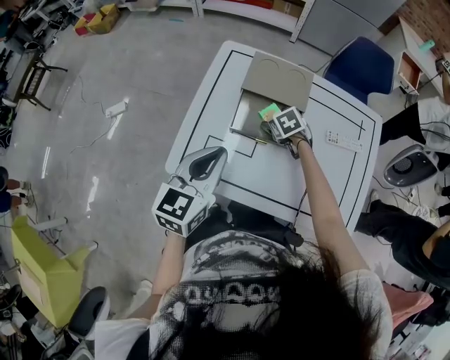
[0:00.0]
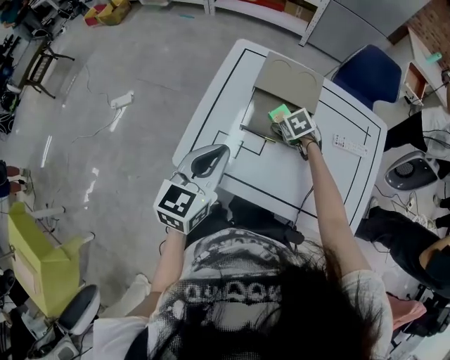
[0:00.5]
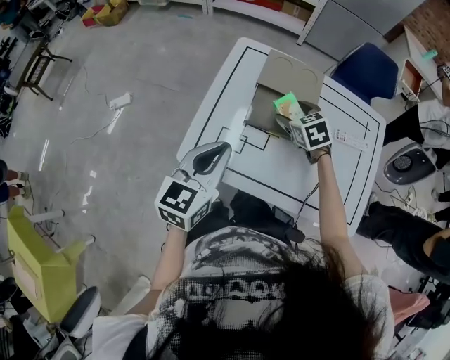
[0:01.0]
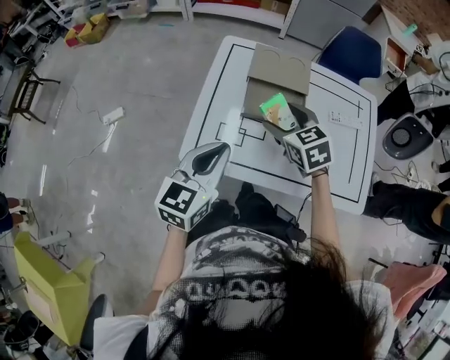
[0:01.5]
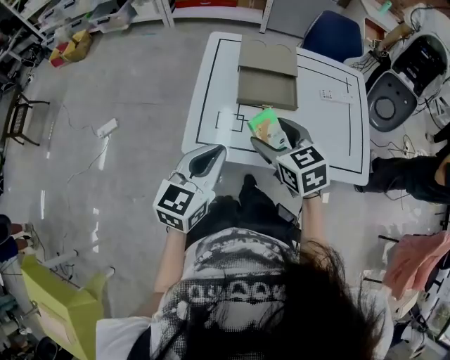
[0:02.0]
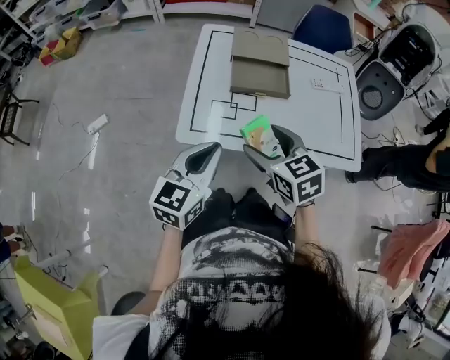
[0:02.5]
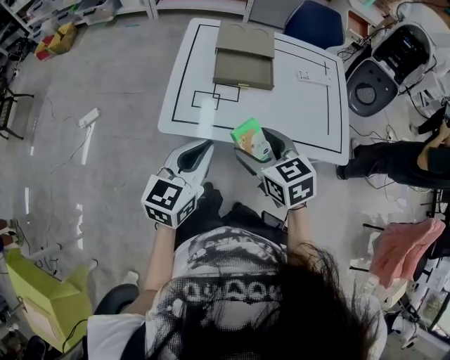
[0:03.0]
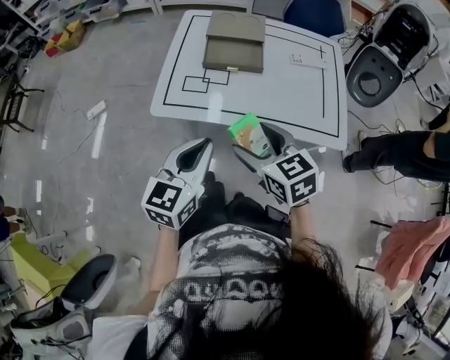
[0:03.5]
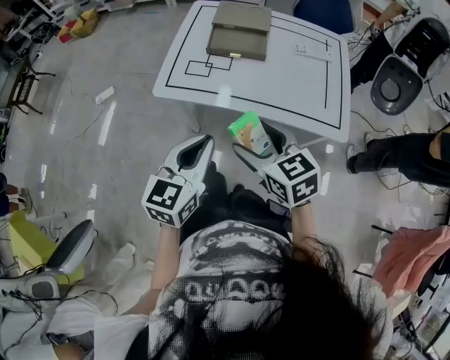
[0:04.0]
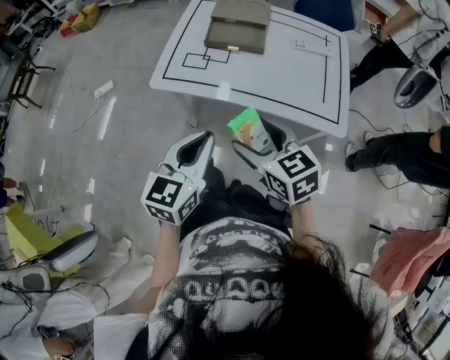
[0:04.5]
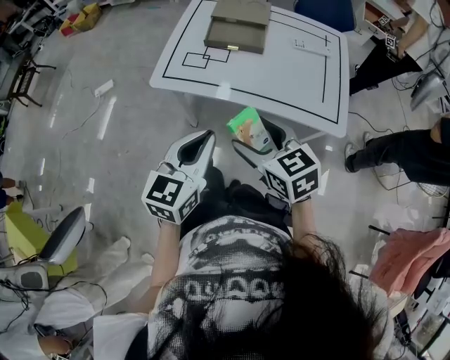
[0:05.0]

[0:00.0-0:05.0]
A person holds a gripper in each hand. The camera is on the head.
0:00.0 to 0:02.5: The left gripper goes roughly 20 cm backward and to the left; the right gripper heads backward and upward, covering roughly 40 cm, and changes its angle by about 30 degrees.
0:02.5 to 0:05.0: The grippers both shift backward and to the right by about 25 cm.

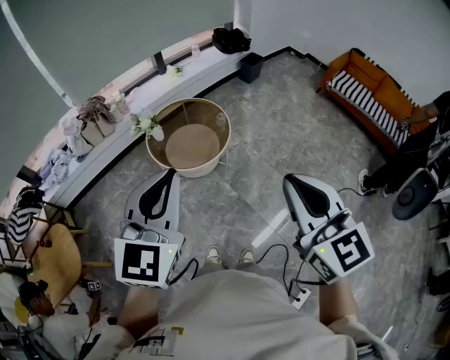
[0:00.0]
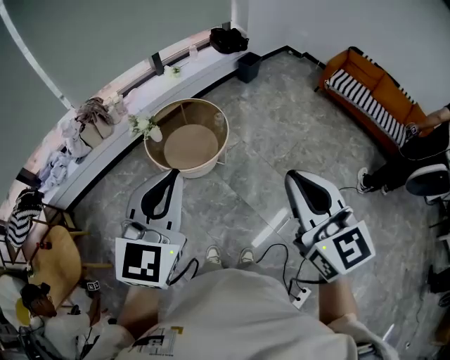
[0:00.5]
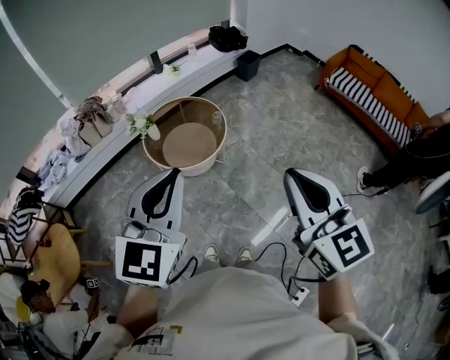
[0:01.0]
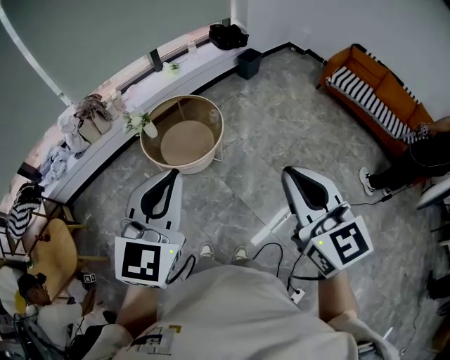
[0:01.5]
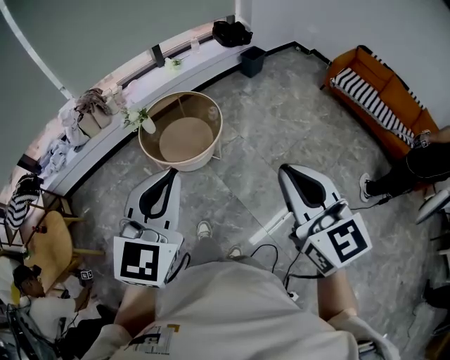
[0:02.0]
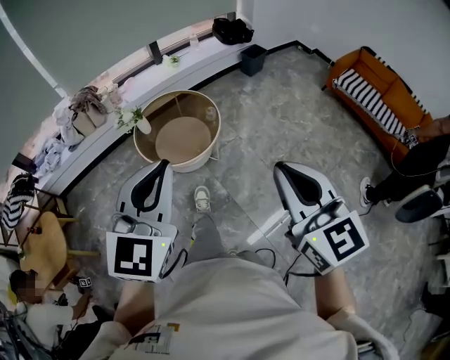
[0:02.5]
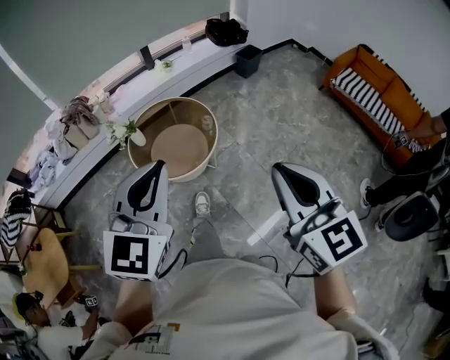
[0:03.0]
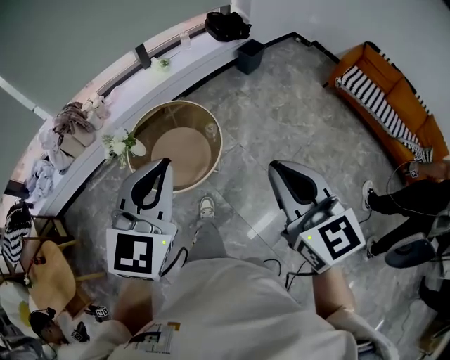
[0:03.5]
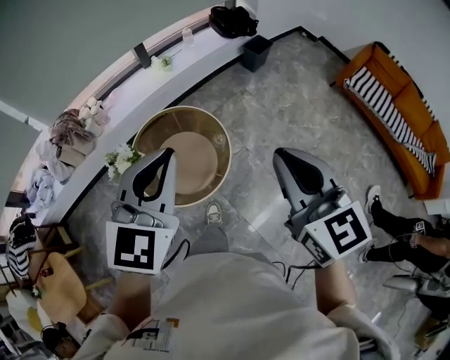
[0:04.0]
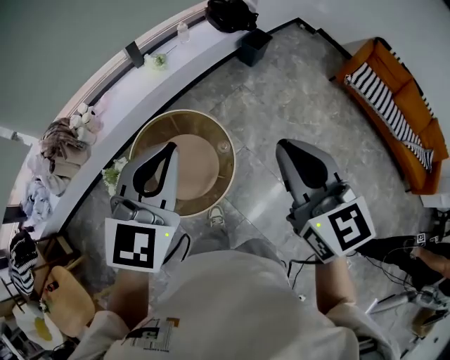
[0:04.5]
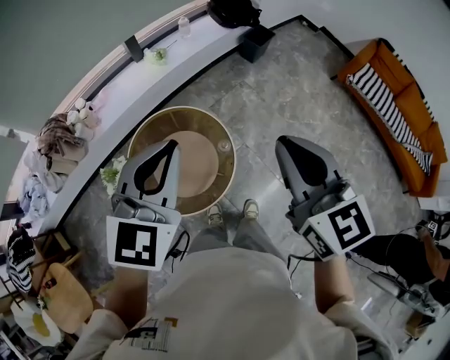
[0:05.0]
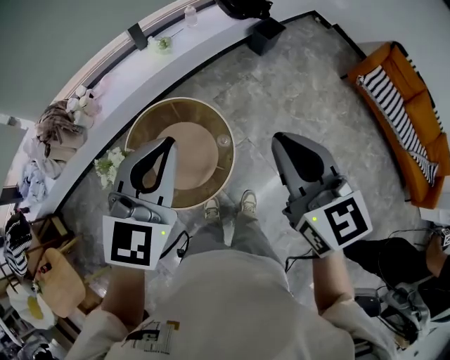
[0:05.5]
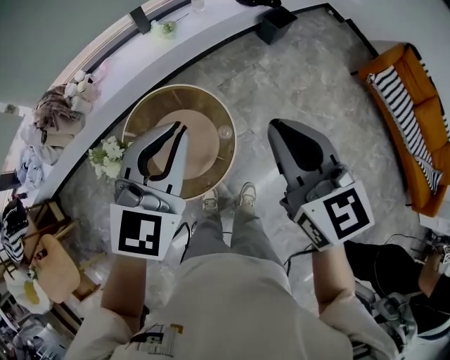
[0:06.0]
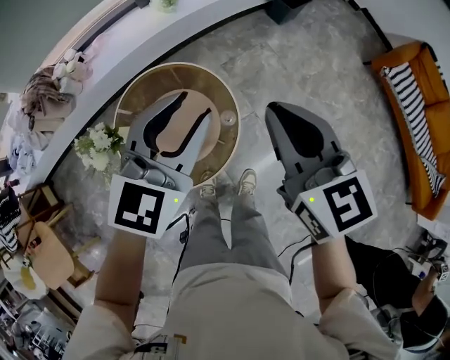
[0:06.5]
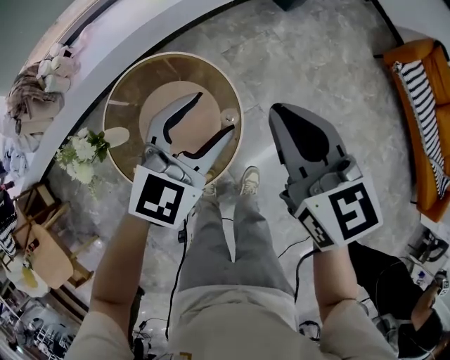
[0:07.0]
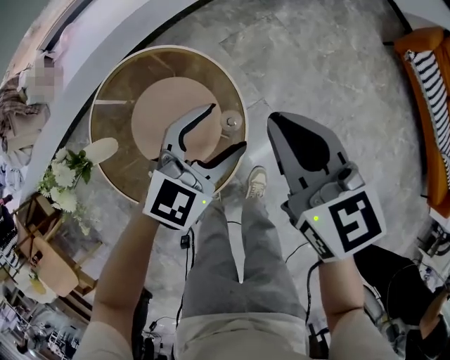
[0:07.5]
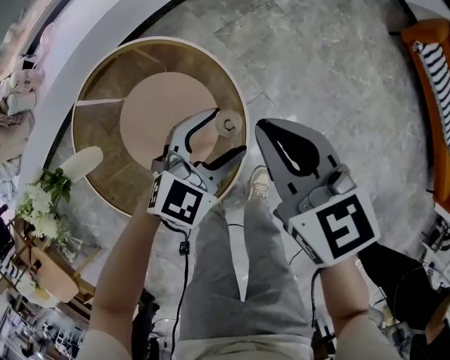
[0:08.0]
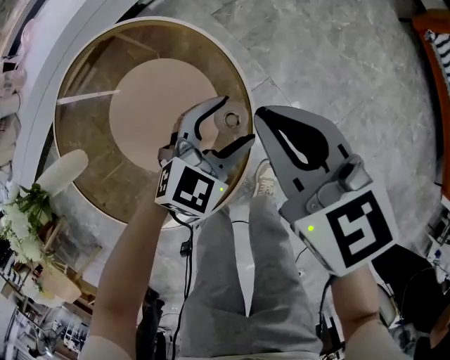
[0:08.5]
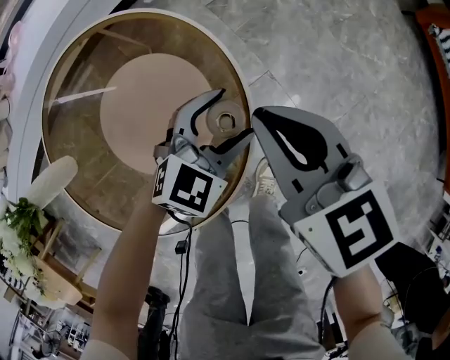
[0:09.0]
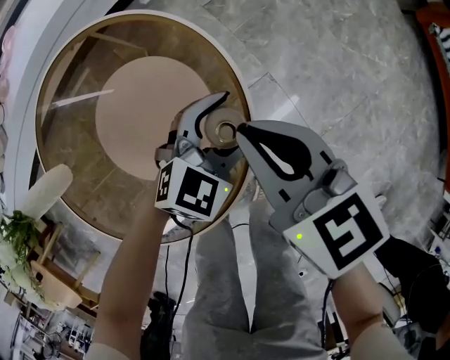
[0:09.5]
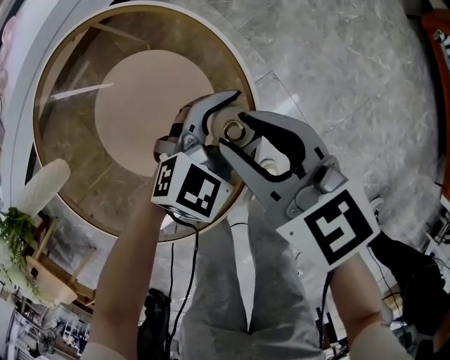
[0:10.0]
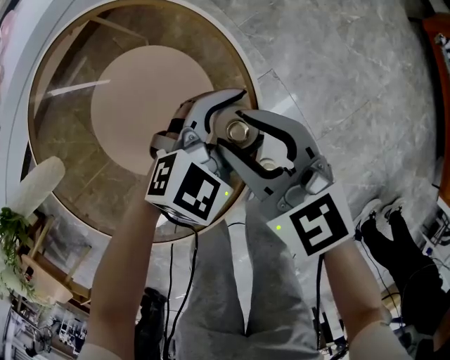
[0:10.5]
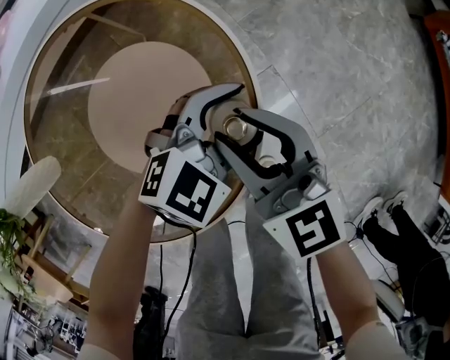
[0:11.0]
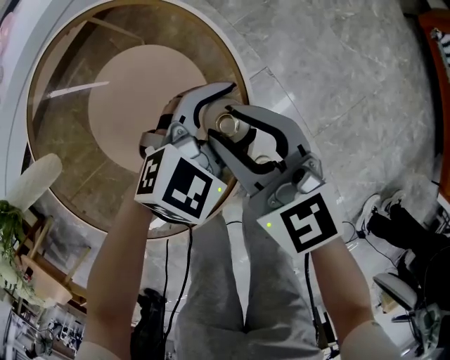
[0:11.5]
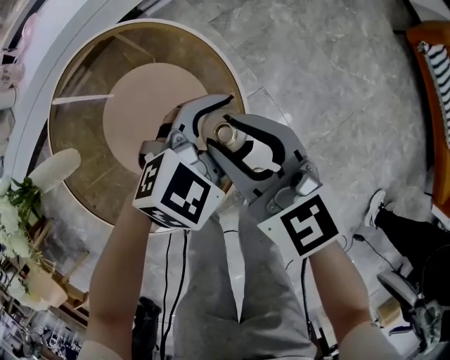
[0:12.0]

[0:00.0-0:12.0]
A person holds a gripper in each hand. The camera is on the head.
0:00.0 to 0:02.0: The grippers both shift to the right by some 10 cm.
0:02.0 to 0:04.0: Both grippers are carried forward, roughly 40 cm.
0:04.0 to 0:06.0: The right gripper moves forward, about 20 cm; the left gripper shifts roughly 20 cm forward and downward.
0:06.0 to 0:08.0: The two grippers go roughly 50 cm downward. The left gripper turns by some 30 degrees, and opens up.
0:08.0 to 0:10.0: The grippers both shift downward by some 15 cm. The right gripper opens its fingers.
0:10.0 to 0:12.0: The grippers both shift upward by roughly 10 cm.

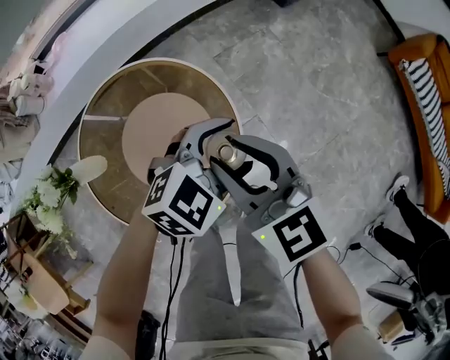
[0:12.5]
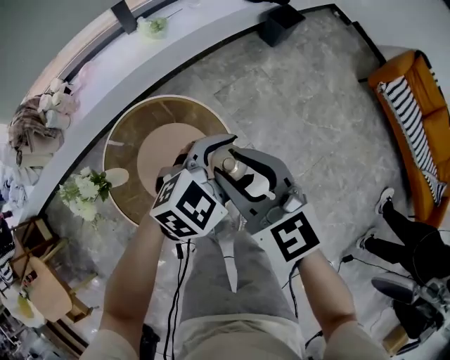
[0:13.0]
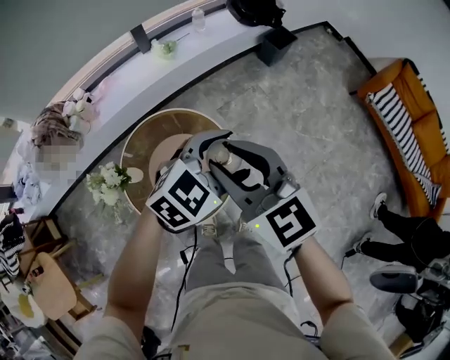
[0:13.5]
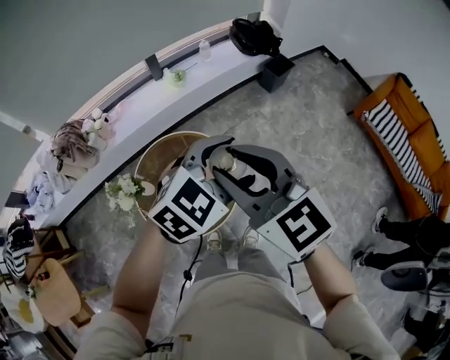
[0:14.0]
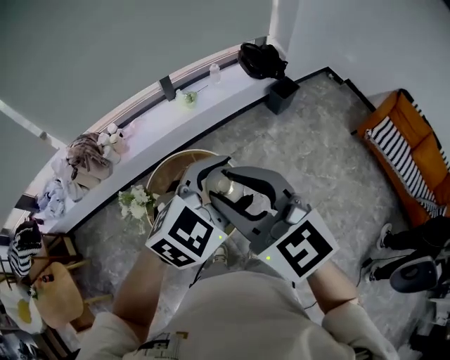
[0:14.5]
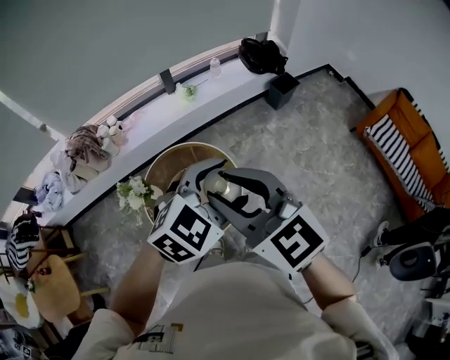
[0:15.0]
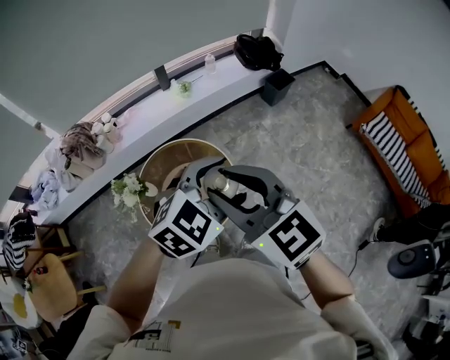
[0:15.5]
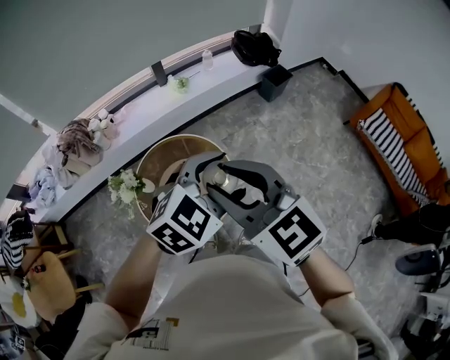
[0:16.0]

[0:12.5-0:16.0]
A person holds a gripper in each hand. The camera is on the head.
0:12.5 to 0:14.5: Both grippers travel together upward, about 50 cm. The right gripper rotates approximately 20 degrees.
0:14.5 to 0:16.0: There are only small adjustments of the grippers.

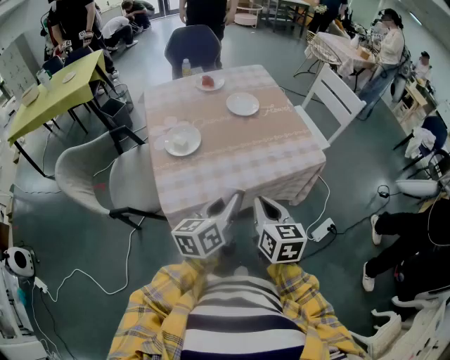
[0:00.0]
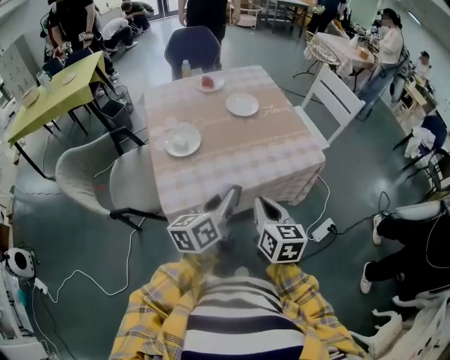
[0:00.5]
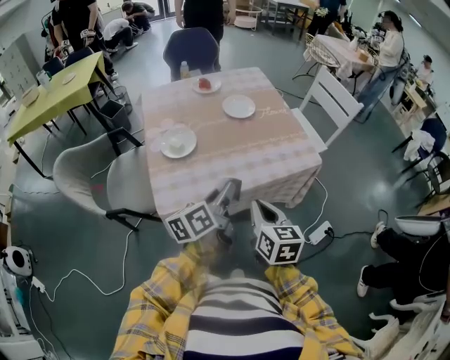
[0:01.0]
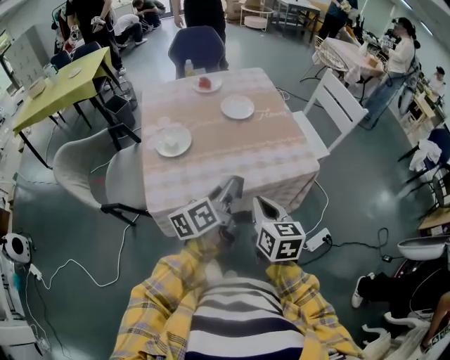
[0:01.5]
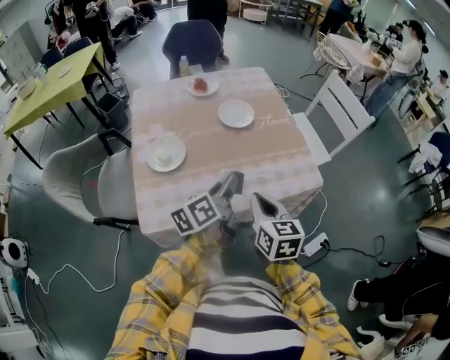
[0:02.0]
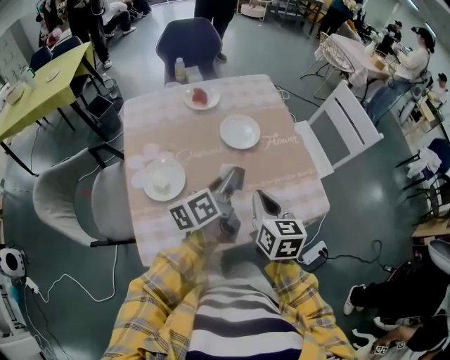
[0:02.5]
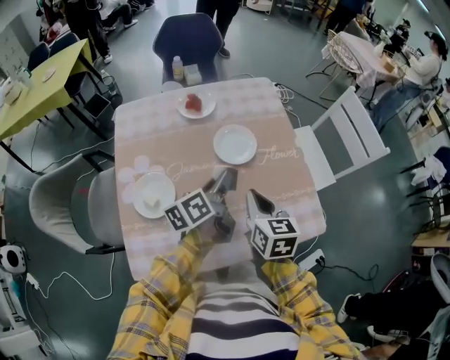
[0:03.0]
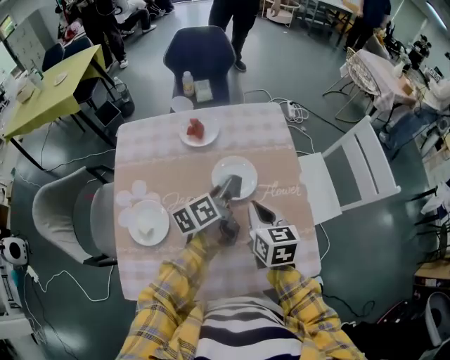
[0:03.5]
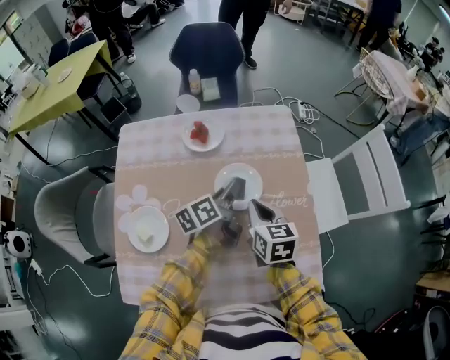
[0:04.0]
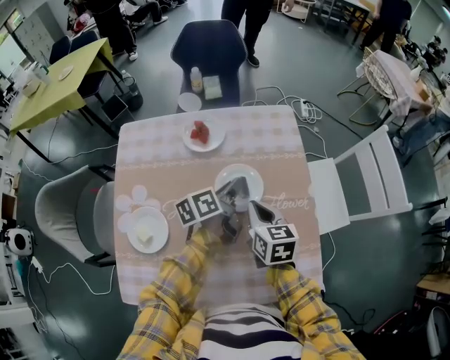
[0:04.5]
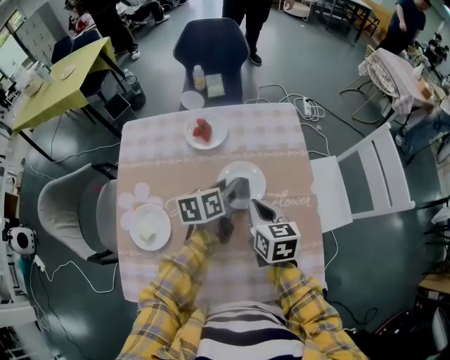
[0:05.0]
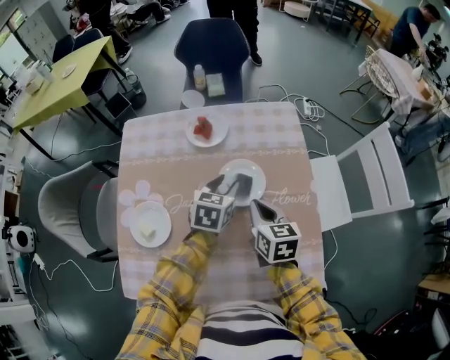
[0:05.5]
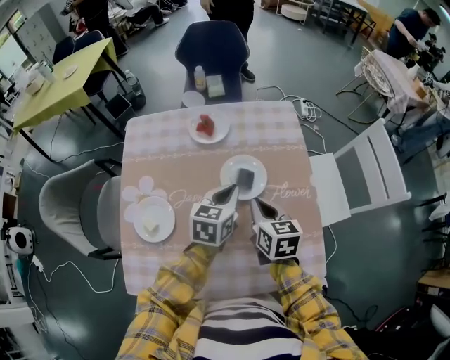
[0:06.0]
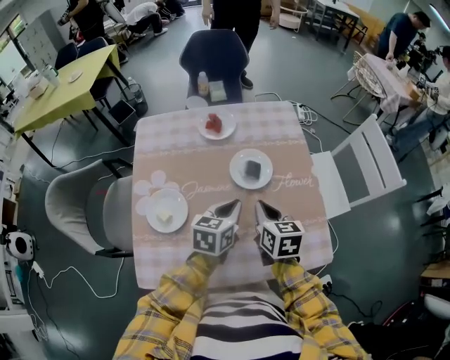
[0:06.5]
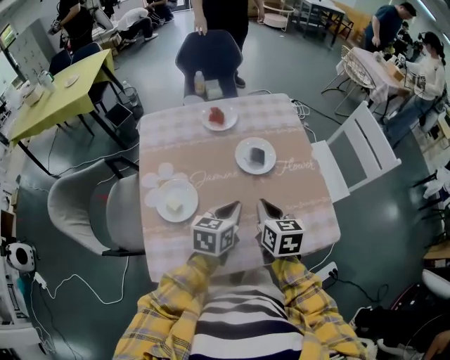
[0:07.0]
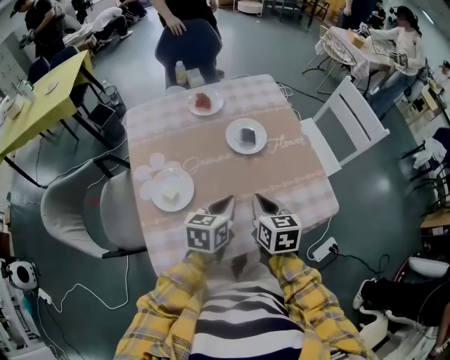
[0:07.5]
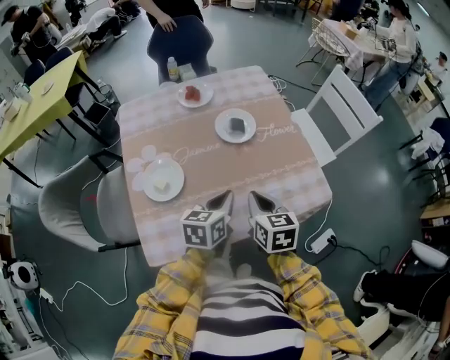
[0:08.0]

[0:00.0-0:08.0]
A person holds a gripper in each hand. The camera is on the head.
0:00.0 to 0:02.0: Both grippers travel together forward, approximately 15 cm. The left gripper turns by roughly 20 degrees.
0:02.0 to 0:04.0: The two grippers go about 30 cm forward.
0:04.0 to 0:06.0: The left gripper heads backward, covering roughly 5 cm, twists roughly 50 degrees clockwise, seen from behind, and opens, then closes again.
0:06.0 to 0:08.0: Both grippers move backward, roughly 20 cm.
